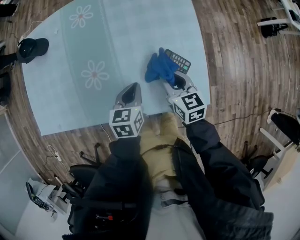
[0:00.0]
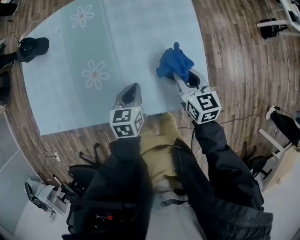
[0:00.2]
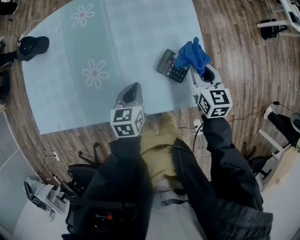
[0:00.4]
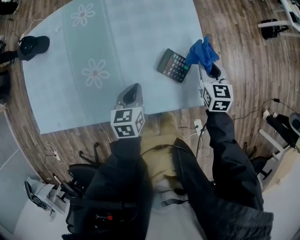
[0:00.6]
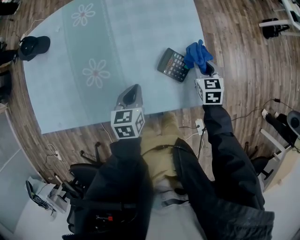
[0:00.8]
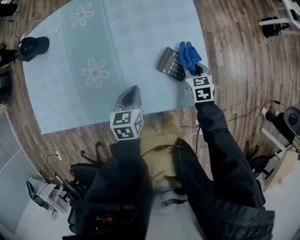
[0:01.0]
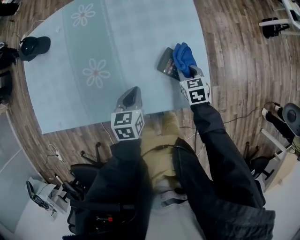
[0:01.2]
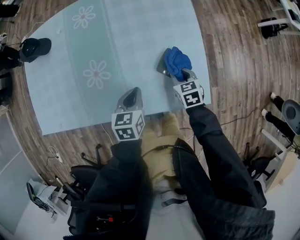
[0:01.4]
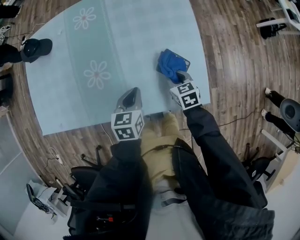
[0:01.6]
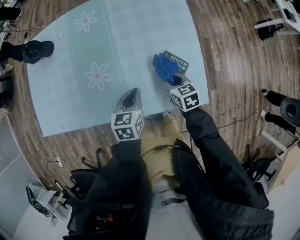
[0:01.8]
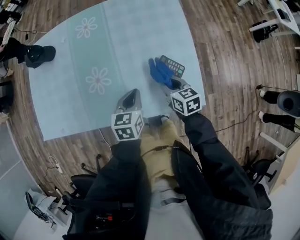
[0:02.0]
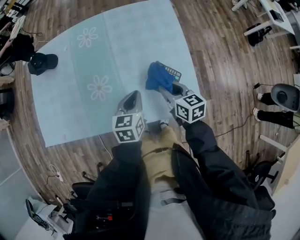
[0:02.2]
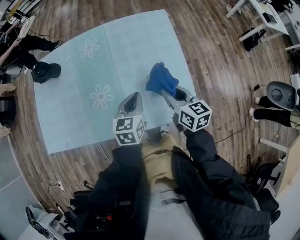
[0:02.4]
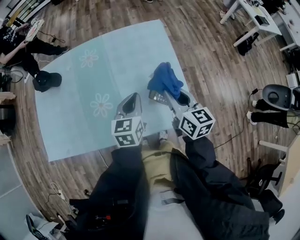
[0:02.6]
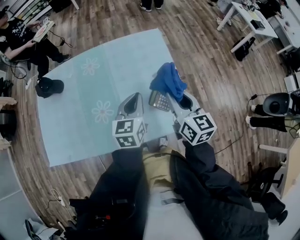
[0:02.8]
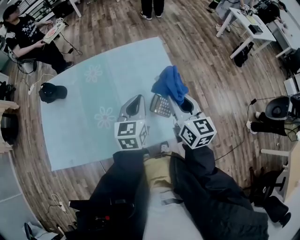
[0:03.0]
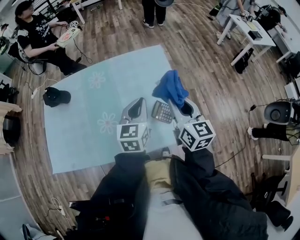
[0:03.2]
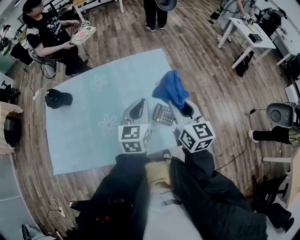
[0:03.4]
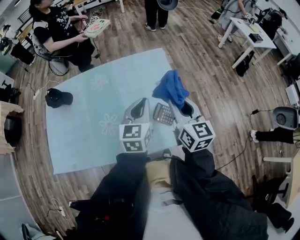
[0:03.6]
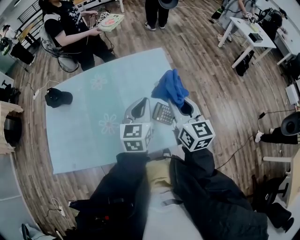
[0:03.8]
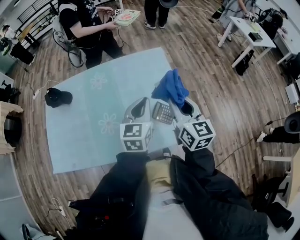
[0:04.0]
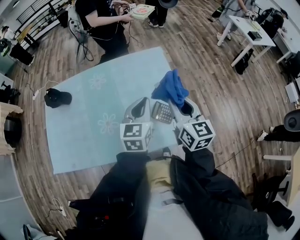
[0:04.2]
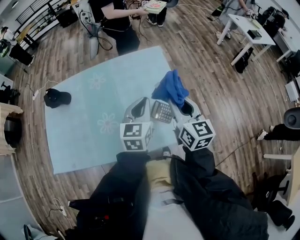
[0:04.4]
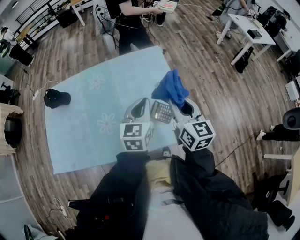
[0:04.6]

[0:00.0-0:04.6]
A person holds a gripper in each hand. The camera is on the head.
0:00.0 to 0:01.6: The right gripper is displaced downward by some 10 cm, and reaches roughly 15 cm to the right, then returns.
0:01.6 to 0:03.0: The right gripper goes some 35 cm upward, and points its fingers some 40 degrees further upward. The left gripper travels upward by some 20 cm, and turns by about 30 degrees.
0:03.0 to 0:04.6: The grippers move only a little.

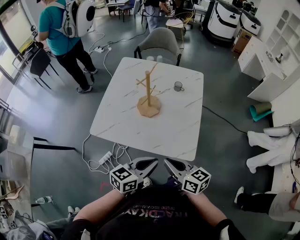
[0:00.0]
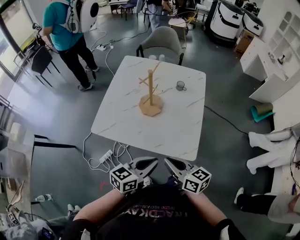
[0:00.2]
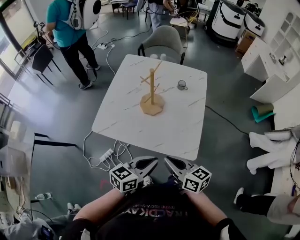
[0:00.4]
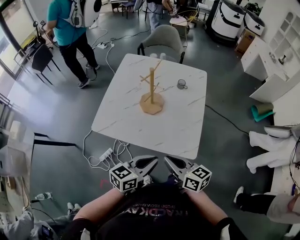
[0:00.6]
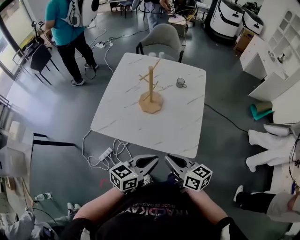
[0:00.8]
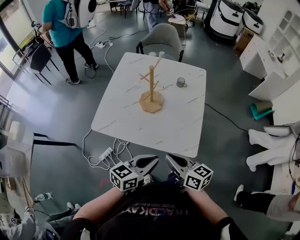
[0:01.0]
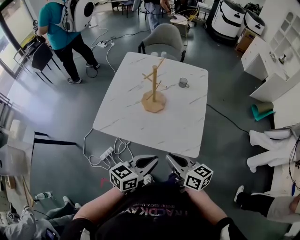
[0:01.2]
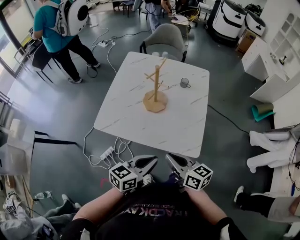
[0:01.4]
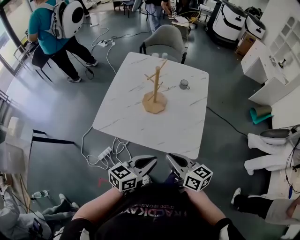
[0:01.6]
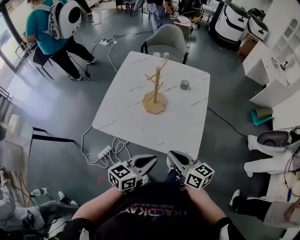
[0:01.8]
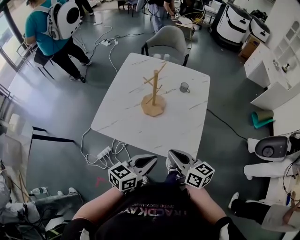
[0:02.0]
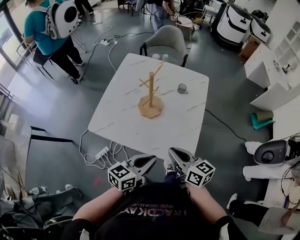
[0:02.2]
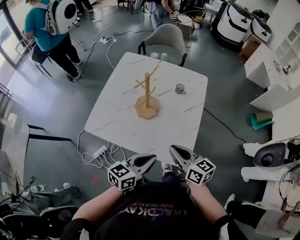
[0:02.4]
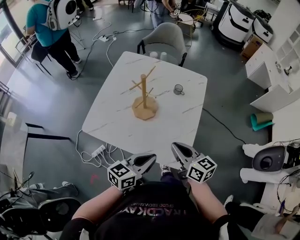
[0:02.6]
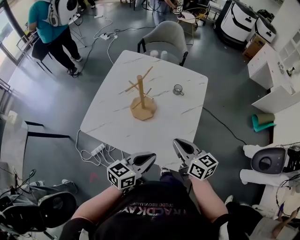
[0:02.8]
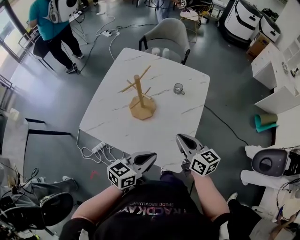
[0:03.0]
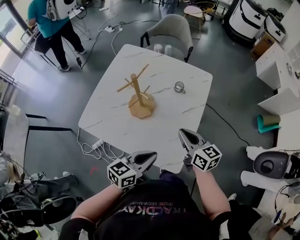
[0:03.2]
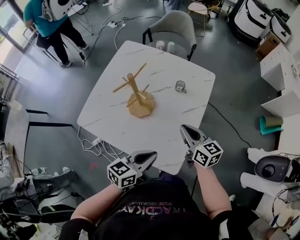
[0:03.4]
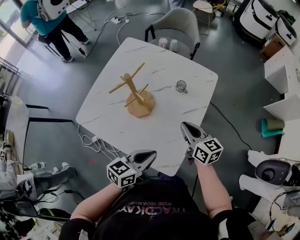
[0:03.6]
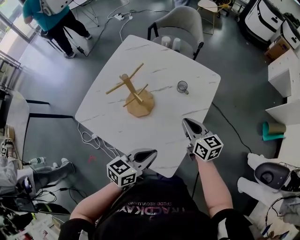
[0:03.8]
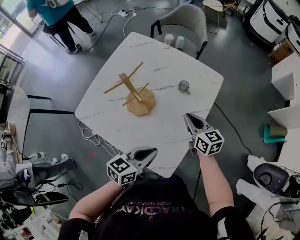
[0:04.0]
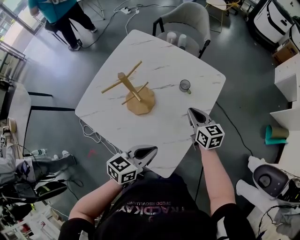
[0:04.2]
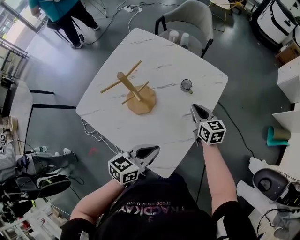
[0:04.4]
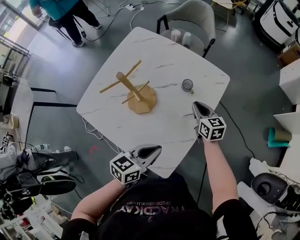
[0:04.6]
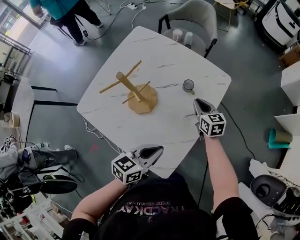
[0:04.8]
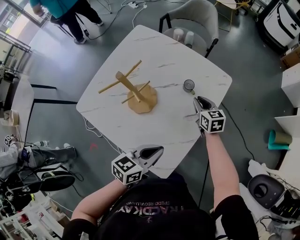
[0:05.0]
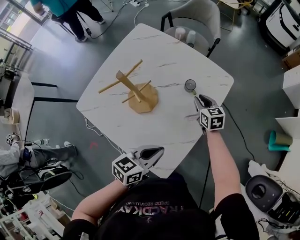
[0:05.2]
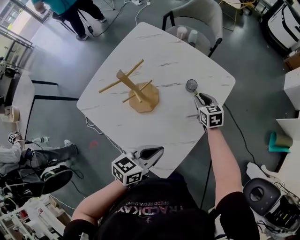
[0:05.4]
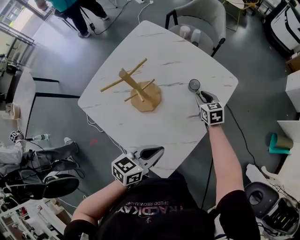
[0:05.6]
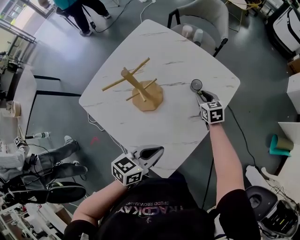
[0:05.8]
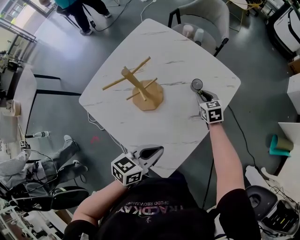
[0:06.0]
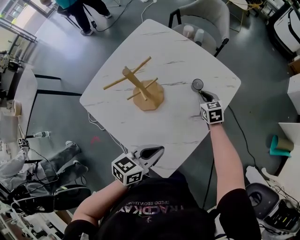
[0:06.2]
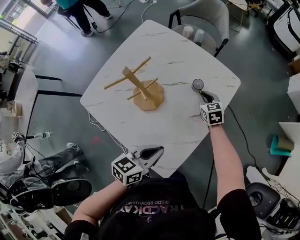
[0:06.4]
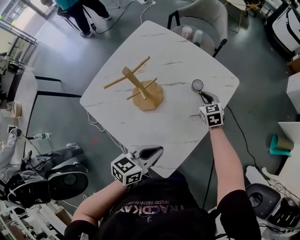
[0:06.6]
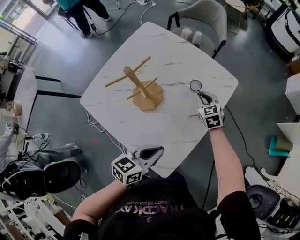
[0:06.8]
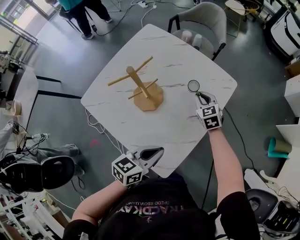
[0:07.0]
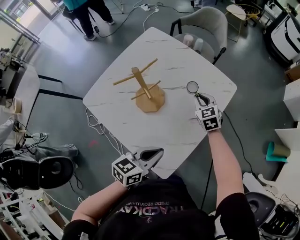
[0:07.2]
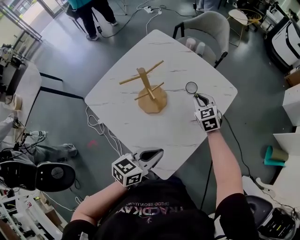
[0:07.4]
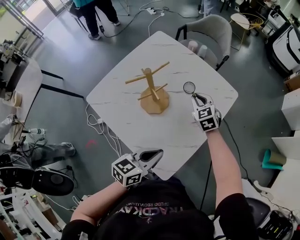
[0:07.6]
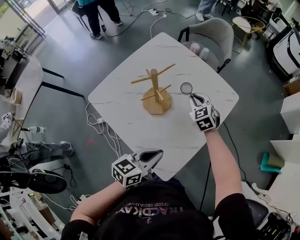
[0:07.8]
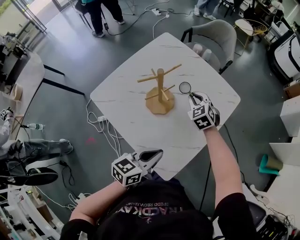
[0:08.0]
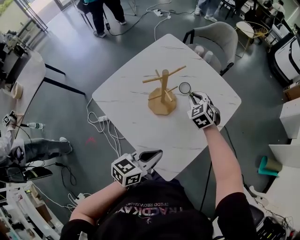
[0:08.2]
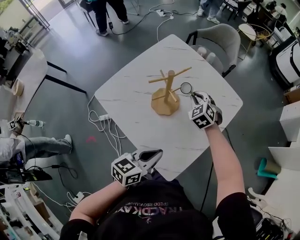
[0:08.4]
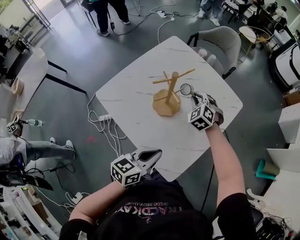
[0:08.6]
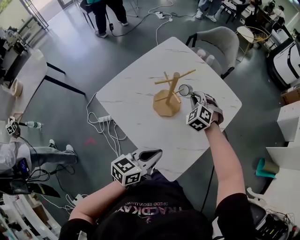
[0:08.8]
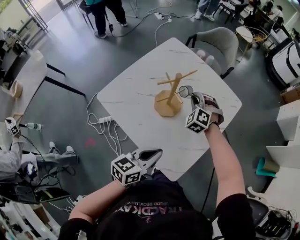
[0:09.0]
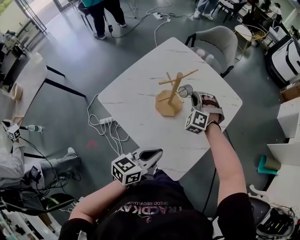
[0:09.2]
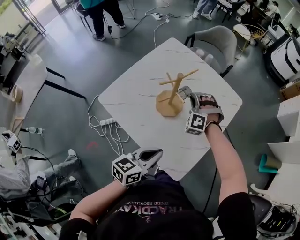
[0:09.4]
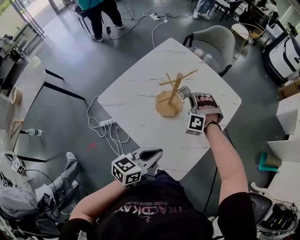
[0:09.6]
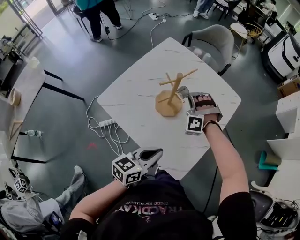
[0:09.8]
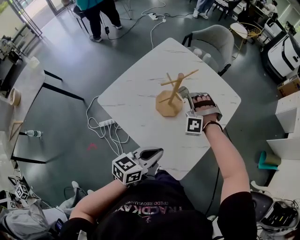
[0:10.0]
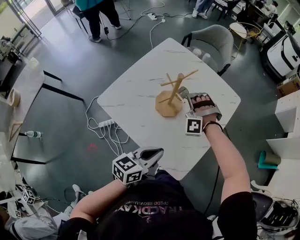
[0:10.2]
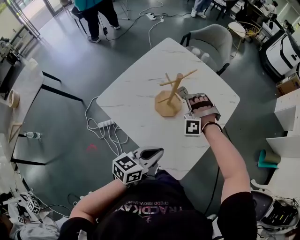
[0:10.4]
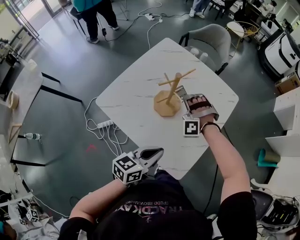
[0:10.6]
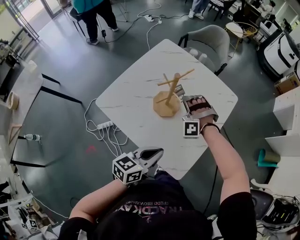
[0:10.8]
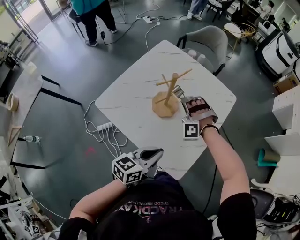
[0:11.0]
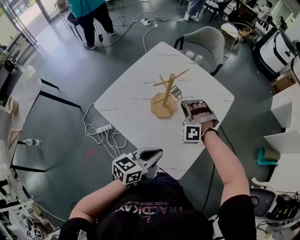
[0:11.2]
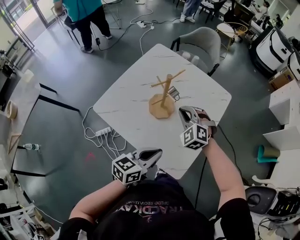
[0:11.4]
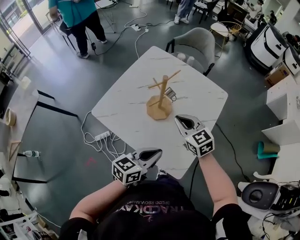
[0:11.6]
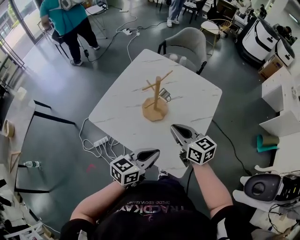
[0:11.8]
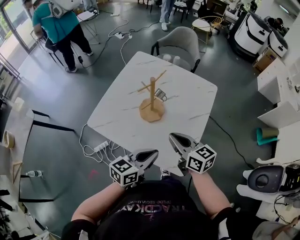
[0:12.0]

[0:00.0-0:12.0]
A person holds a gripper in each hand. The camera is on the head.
0:00.0 to 0:01.6: The grippers move only a little.
0:01.6 to 0:03.0: The right gripper moves forward and to the right, about 20 cm. Meanwhile the left gripper goes roughly 15 cm forward and to the right.
0:03.0 to 0:04.4: The left gripper goes roughly 10 cm forward and to the right, while the right gripper is displaced forward and downward by roughly 25 cm.
0:04.4 to 0:06.0: The right gripper shifts approximately 10 cm downward and forward, and swivels approximately 20 degrees.
0:06.0 to 0:07.6: The right gripper moves upward and to the left, some 10 cm, and turns by some 20 degrees.
0:07.6 to 0:09.0: The grippers both shift to the left by some 10 cm. The right gripper rolls counterclockwise, seen from behind, by roughly 40 degrees.
0:09.0 to 0:10.4: The right gripper shifts by roughly 5 cm, and turns by about 40 degrees.
0:10.4 to 0:12.0: The right gripper heads backward and upward, covering about 20 cm, and twists approximately 120 degrees clockwise, seen from behind.

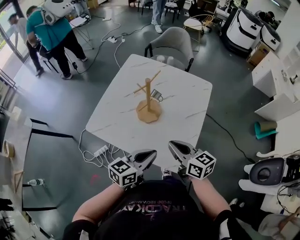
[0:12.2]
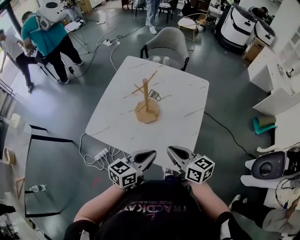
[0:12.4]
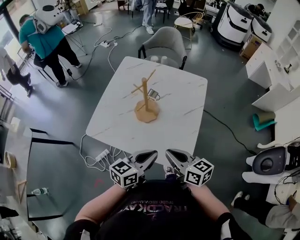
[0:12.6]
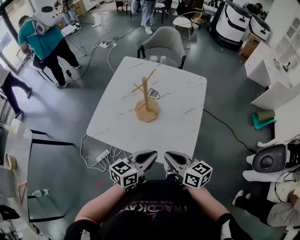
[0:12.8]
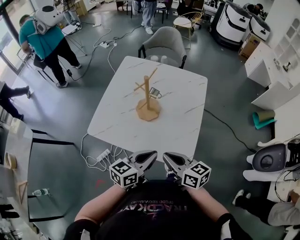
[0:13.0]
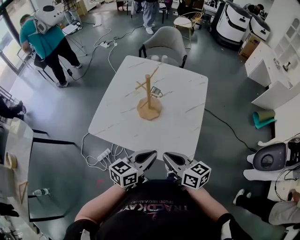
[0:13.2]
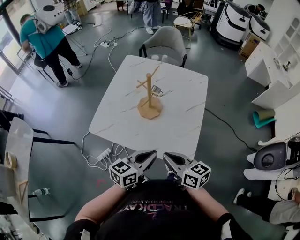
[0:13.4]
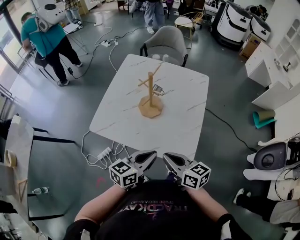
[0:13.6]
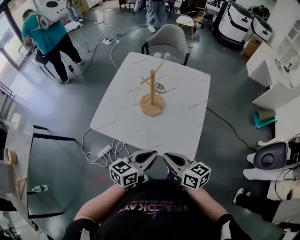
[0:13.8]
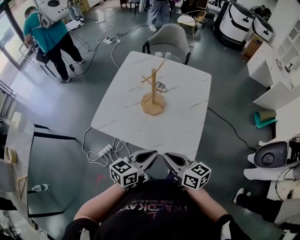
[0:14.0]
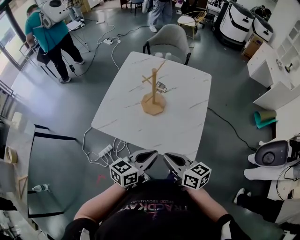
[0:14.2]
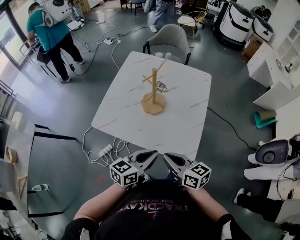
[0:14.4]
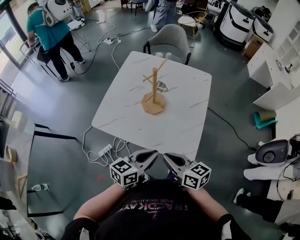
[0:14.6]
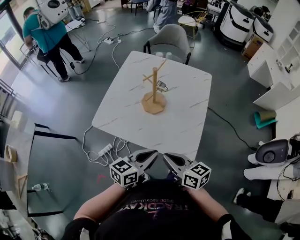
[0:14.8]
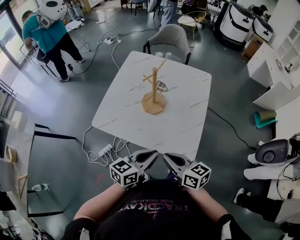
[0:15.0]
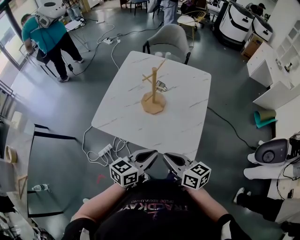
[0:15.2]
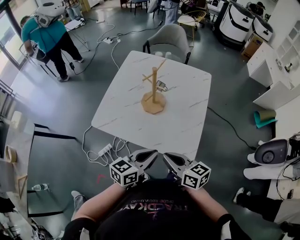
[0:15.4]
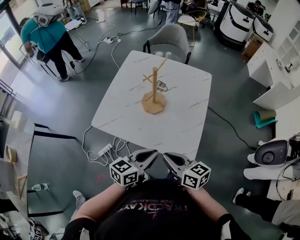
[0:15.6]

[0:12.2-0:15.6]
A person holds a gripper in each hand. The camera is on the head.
0:12.2 to 0:13.8: The right gripper travels backward and to the left by about 10 cm. Meanwhile the left gripper travels backward by some 5 cm.
0:13.8 to 0:15.6: The grippers make only small movements.

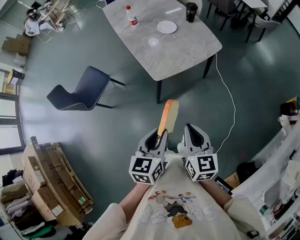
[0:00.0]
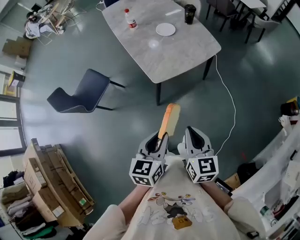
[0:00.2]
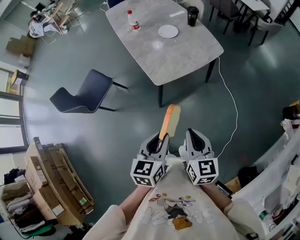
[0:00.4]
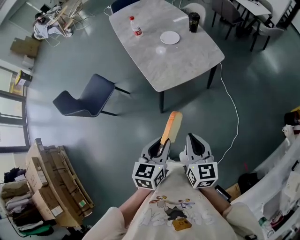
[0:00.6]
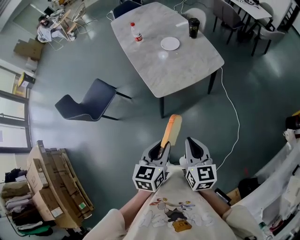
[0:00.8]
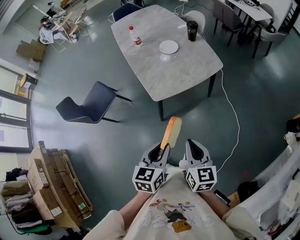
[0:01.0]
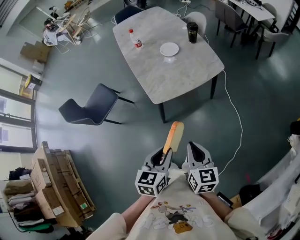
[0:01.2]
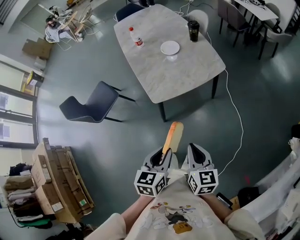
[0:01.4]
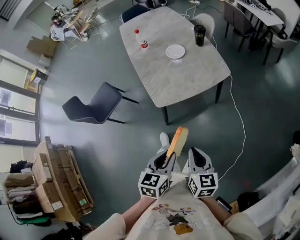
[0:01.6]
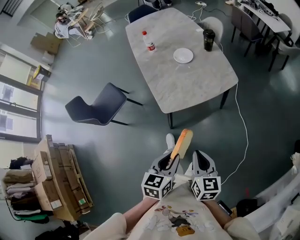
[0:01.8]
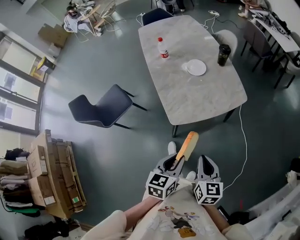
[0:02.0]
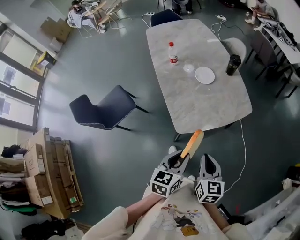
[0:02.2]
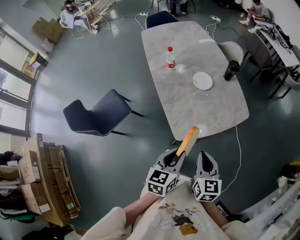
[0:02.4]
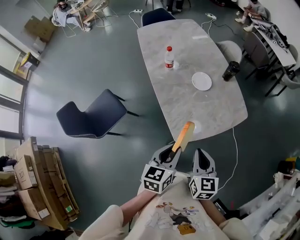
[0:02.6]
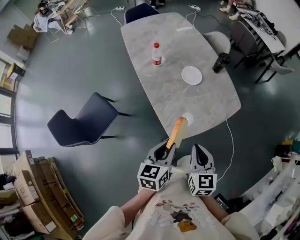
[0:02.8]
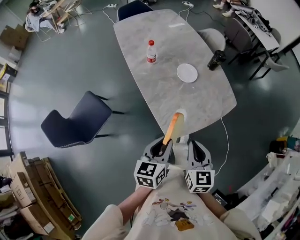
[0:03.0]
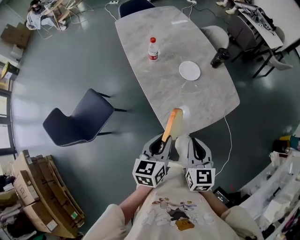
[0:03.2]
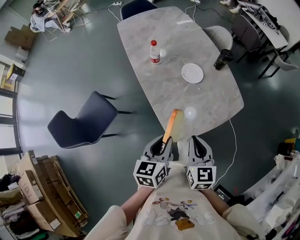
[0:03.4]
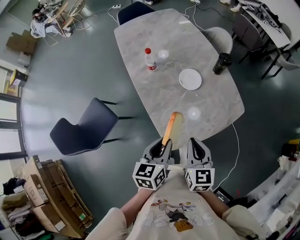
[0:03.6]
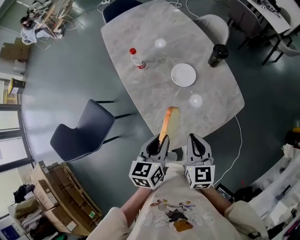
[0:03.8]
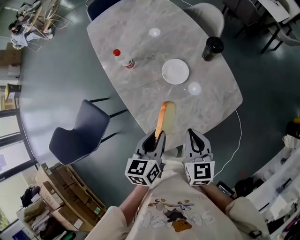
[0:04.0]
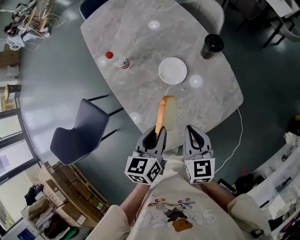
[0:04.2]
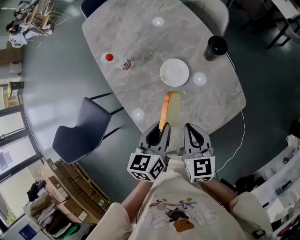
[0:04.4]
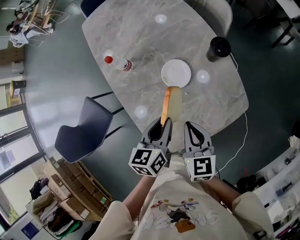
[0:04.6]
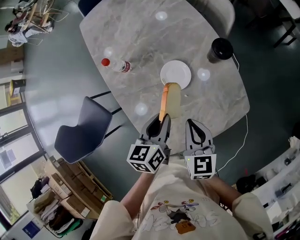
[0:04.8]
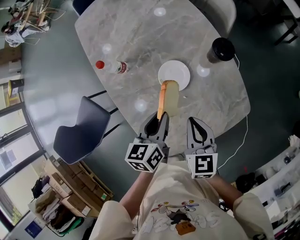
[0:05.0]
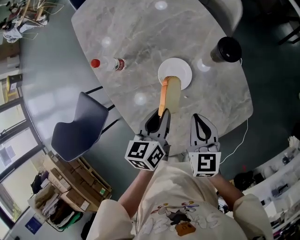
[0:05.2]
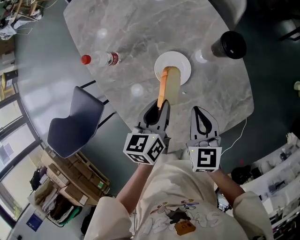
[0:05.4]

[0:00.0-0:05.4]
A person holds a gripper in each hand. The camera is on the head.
0:00.0 to 0:01.4: Both grippers travel together to the right, some 10 cm.
0:01.4 to 0:02.8: Both grippers travel together forward and to the left, approximately 30 cm.
0:02.8 to 0:04.0: Both grippers move forward, about 20 cm.
0:04.0 to 0:05.4: The grippers both shift forward and downward by some 20 cm.
